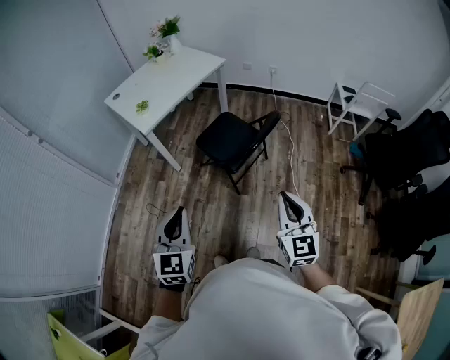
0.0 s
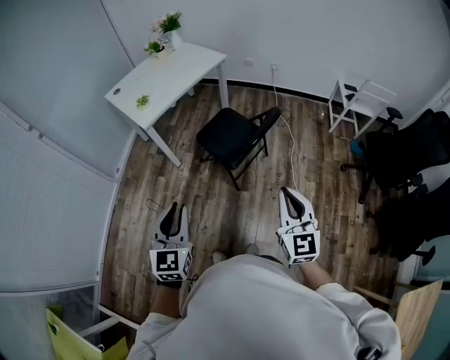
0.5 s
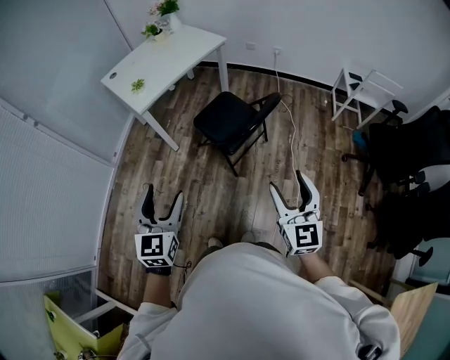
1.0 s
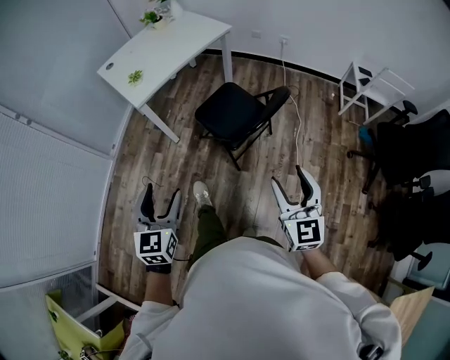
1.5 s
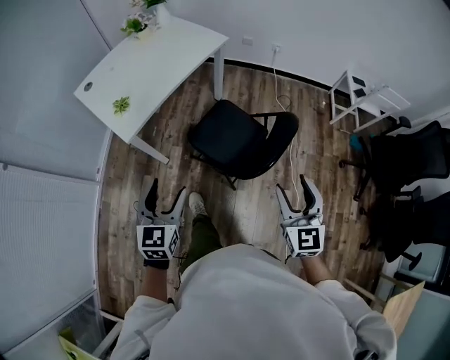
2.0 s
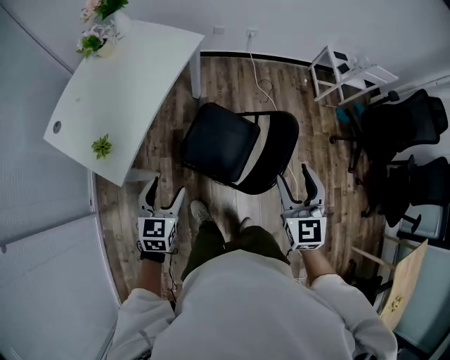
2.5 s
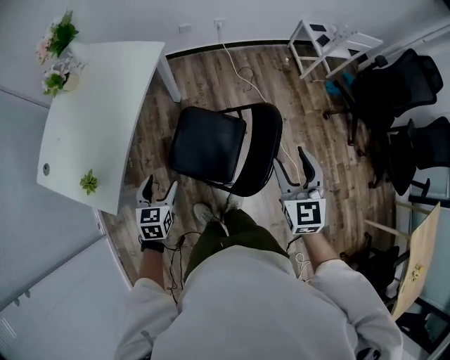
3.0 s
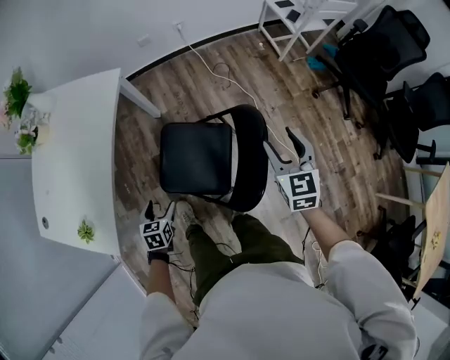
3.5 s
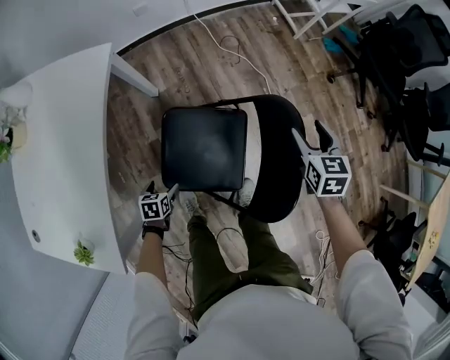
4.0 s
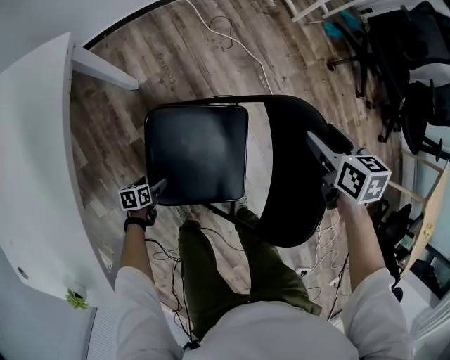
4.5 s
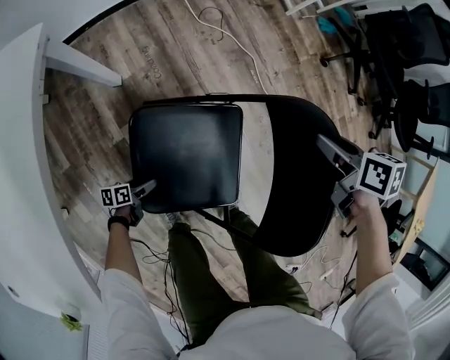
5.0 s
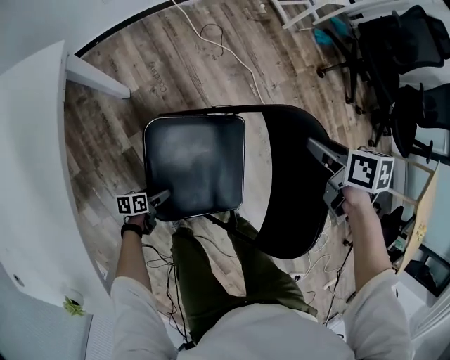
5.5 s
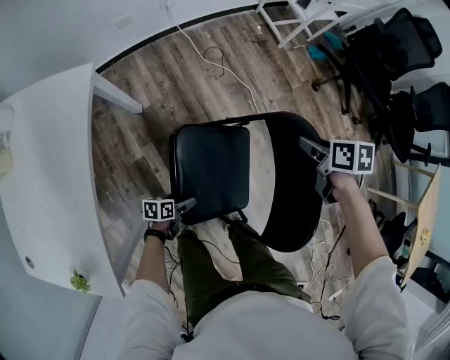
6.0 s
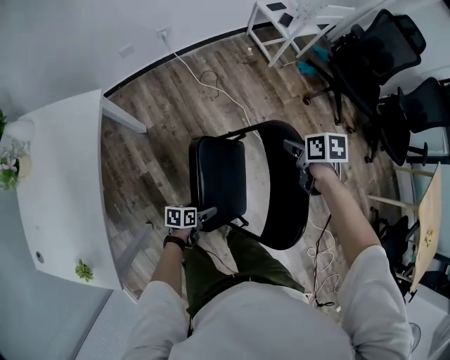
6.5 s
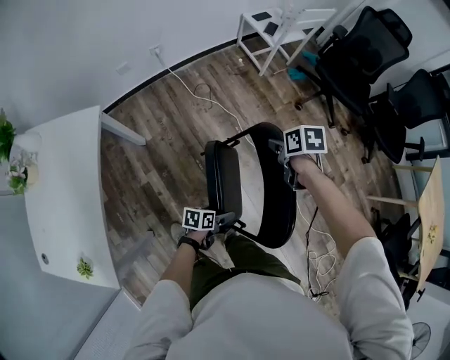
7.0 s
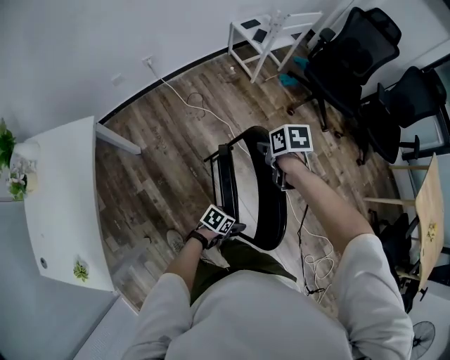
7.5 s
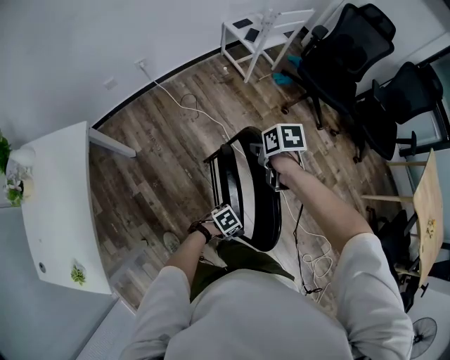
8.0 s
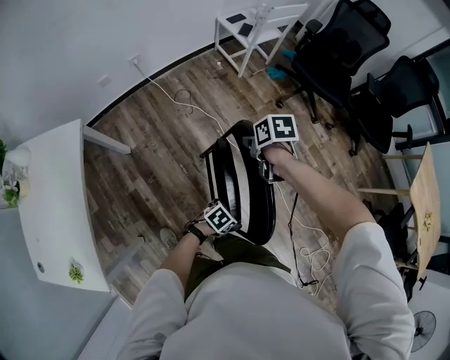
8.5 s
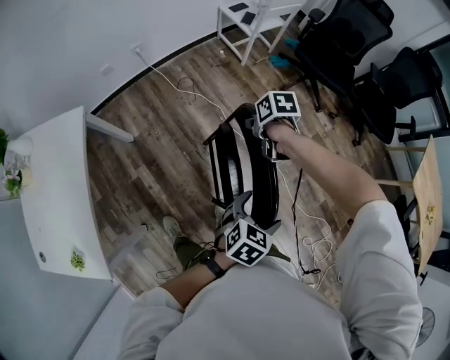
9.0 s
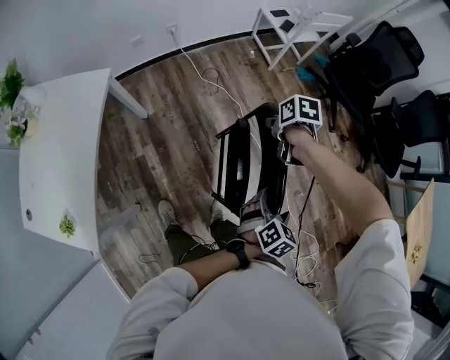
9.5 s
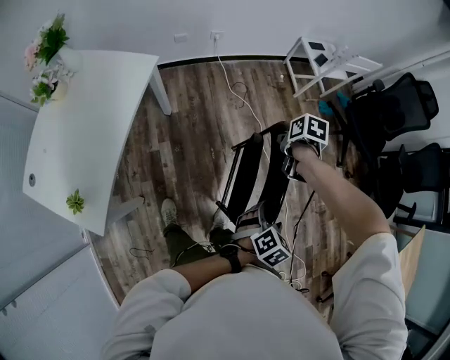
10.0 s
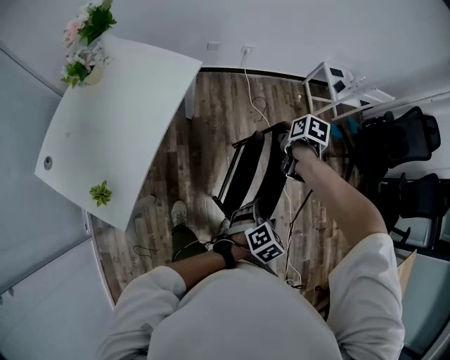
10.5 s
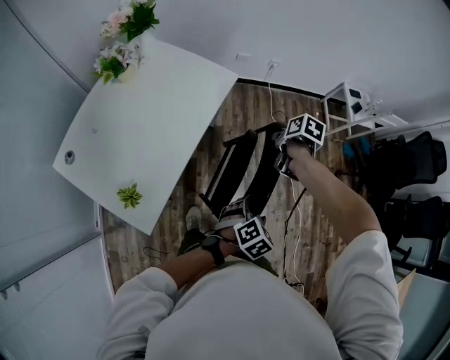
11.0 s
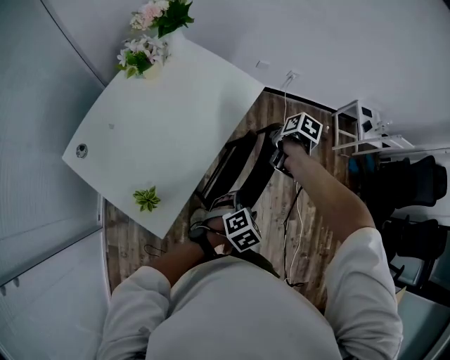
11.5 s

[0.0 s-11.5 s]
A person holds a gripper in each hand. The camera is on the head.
0.0 to 2.0 s: The two grippers go some 30 cm forward. The left gripper opens. Meanwhile the right gripper opens its fingers.
2.0 to 4.0 s: The right gripper changes place by some 40 cm, and swivels roughly 50 degrees; the left gripper travels downward by some 50 cm, and tilts its fingers approximately 40 degrees downward.
4.0 to 6.0 s: The right gripper reaches approximately 10 cm downward, then returns, changes its angle by roughly 40 degrees, and closes its fingers, while the left gripper shifts some 15 cm to the right and forward, goes downward and returns, about 20 cm each way, and rotates roughly 30 degrees.
6.0 to 7.5 s: The right gripper moves some 10 cm; the left gripper ends up roughly 40 cm from where it was, and changes its angle by roughly 40 degrees.
7.5 to 9.5 s: The left gripper goes roughly 20 cm upward, and rotates approximately 40 degrees.
9.5 to 11.5 s: Both grippers are carried to the left, approximately 50 cm.

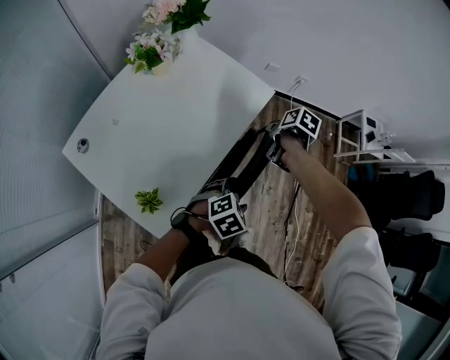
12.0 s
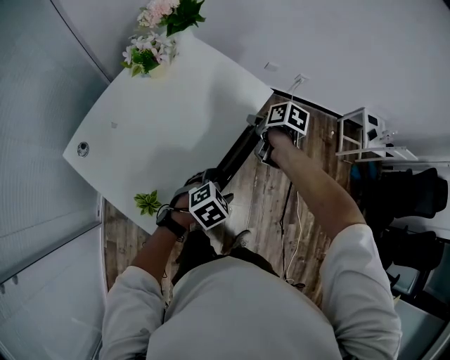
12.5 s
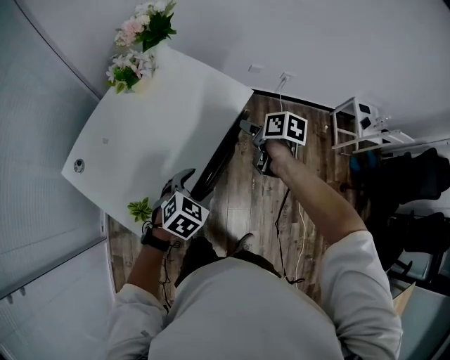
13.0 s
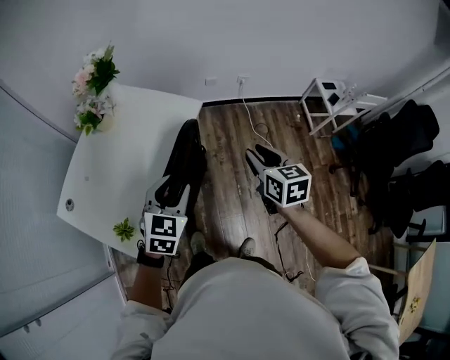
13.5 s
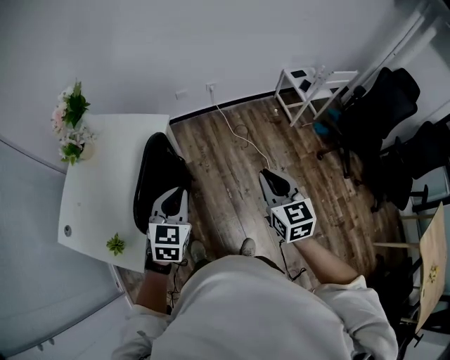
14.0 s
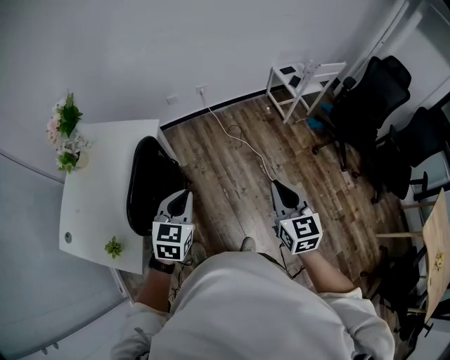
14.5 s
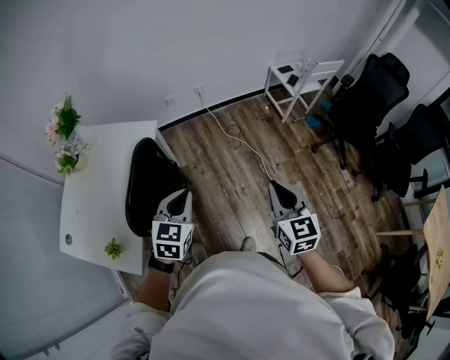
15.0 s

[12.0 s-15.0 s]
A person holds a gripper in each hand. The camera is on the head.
12.0 to 13.5 s: The right gripper heads upward, to the right and backward, covering some 25 cm, tilts its fingers some 40 degrees upward, and opens, then closes once more. Meanwhile the left gripper goes roughly 15 cm upward, and changes its angle by about 40 degrees.
13.5 to 15.0 s: The left gripper travels to the right by about 20 cm, and closes up, while the right gripper travels to the right and backward by some 30 cm, changes its angle by about 20 degrees, and closes its fingers.

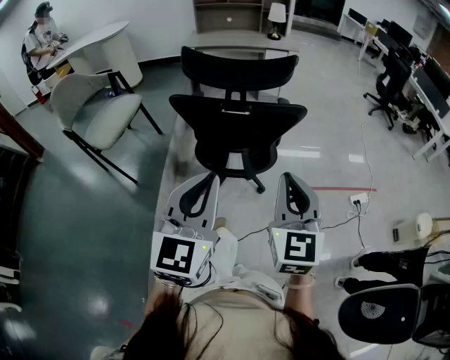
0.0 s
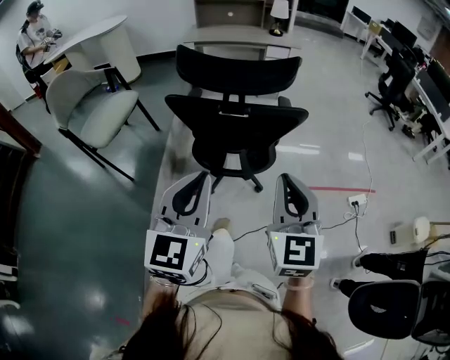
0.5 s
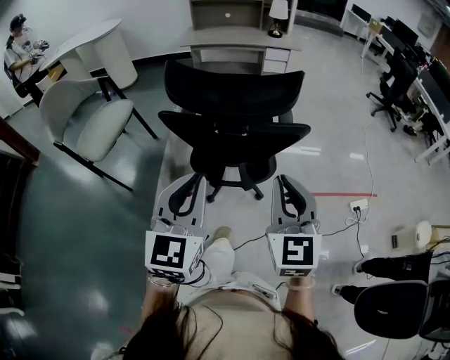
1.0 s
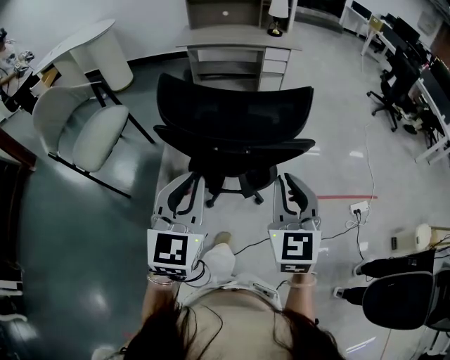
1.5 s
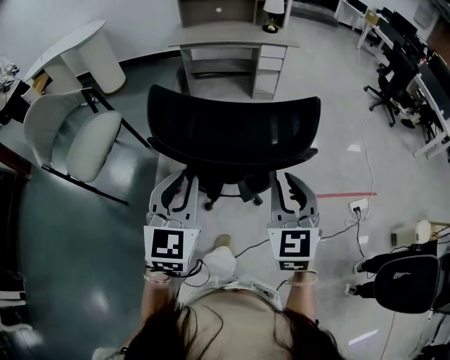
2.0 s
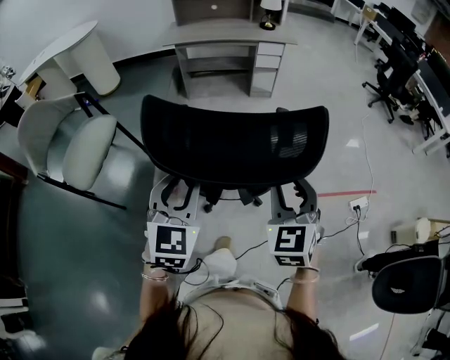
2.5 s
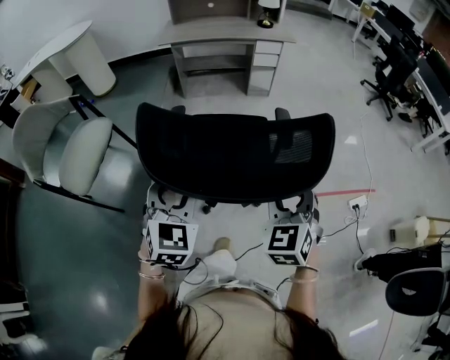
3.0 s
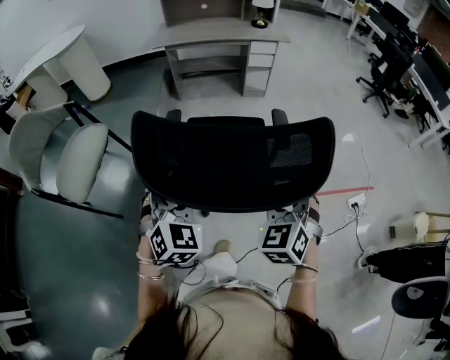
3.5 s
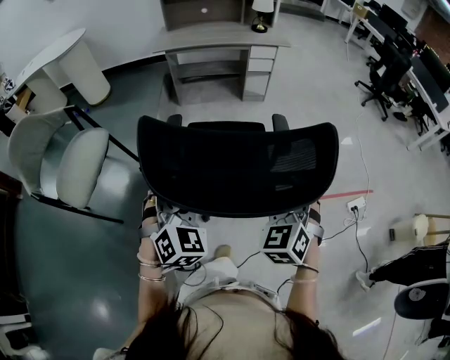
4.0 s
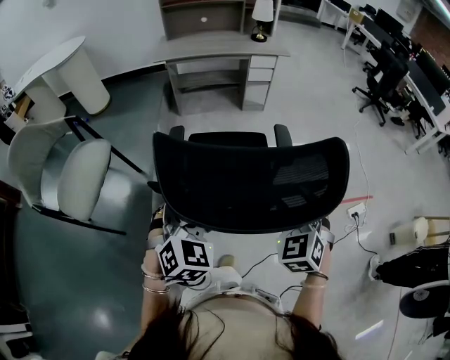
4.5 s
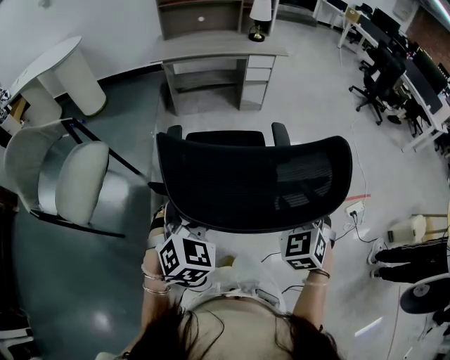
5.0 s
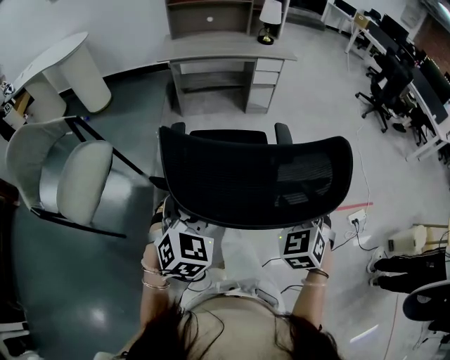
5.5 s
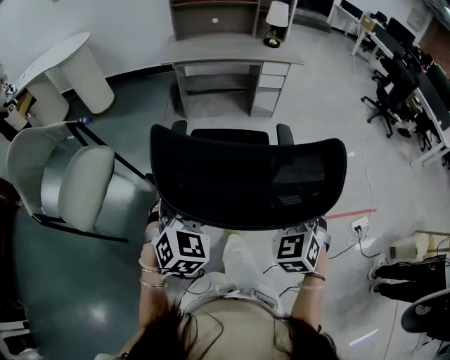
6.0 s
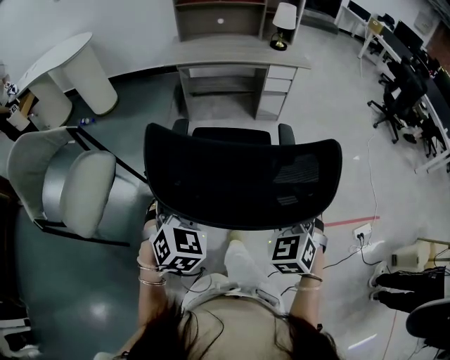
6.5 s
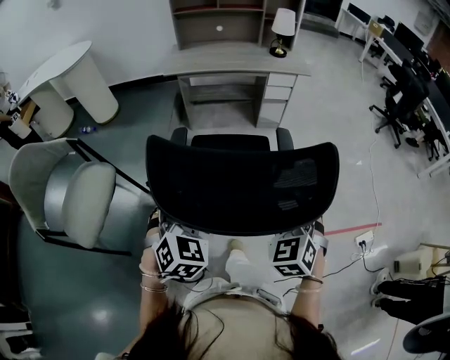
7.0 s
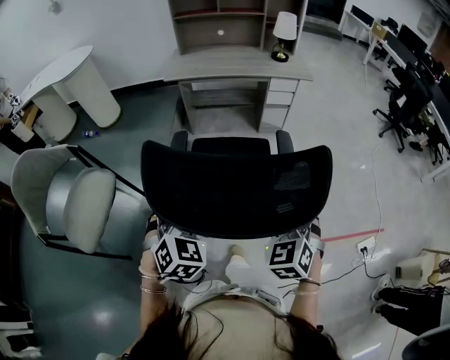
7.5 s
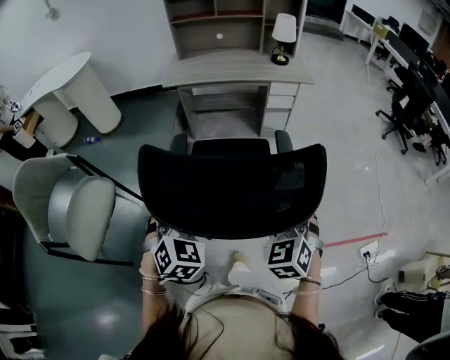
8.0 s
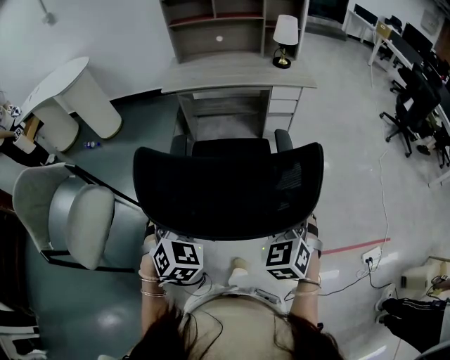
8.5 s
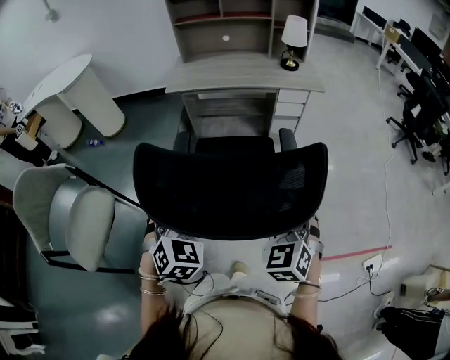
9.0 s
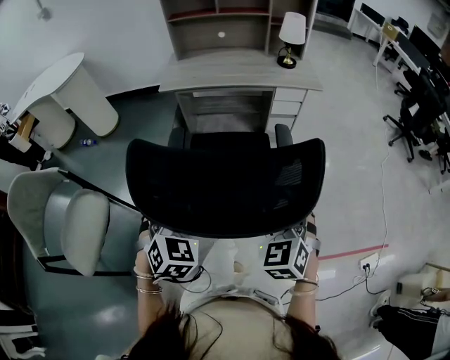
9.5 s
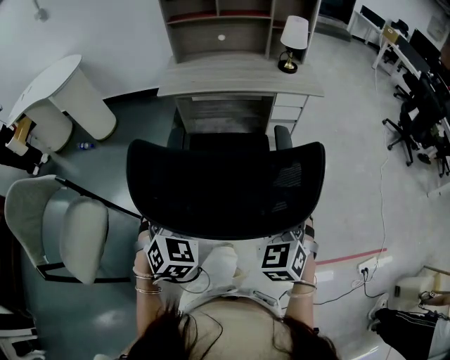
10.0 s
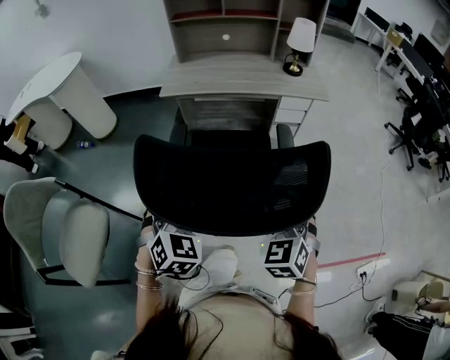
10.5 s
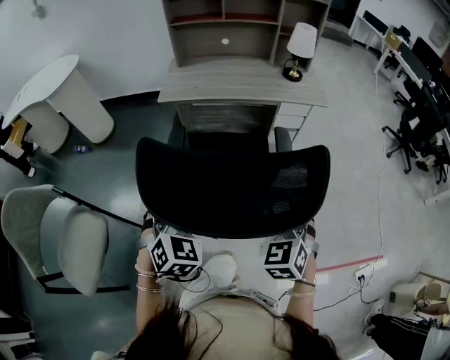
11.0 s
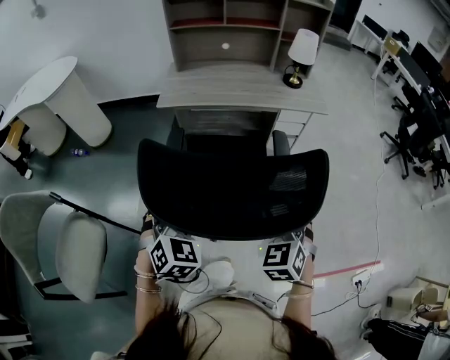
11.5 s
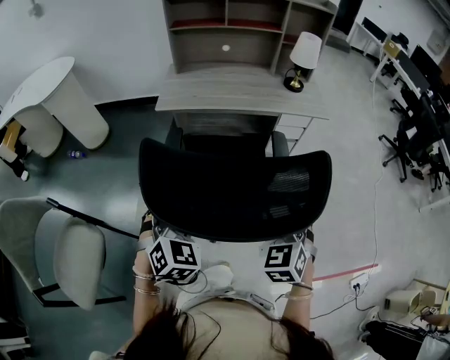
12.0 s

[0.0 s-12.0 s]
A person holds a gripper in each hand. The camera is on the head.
0.0 to 2.0 s: The grippers both shift forward by approximately 20 cm.
2.0 to 4.0 s: Both grippers travel together forward and downward, about 10 cm. The left gripper changes its angle by about 30 degrees, and opens its fingers, while the right gripper swivels roughly 30 degrees, and opens its fingers.
4.0 to 6.0 s: The grippers both shift forward by some 10 cm.
6.0 to 8.0 s: The two grippers go about 15 cm forward.
8.0 to 10.0 s: Both grippers move forward, about 15 cm.
10.0 to 12.0 s: Both grippers move forward, about 10 cm.
